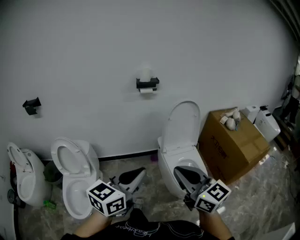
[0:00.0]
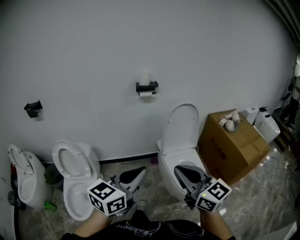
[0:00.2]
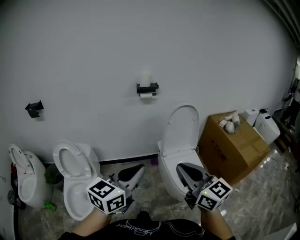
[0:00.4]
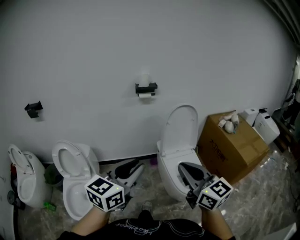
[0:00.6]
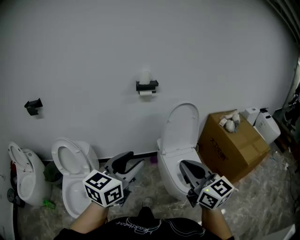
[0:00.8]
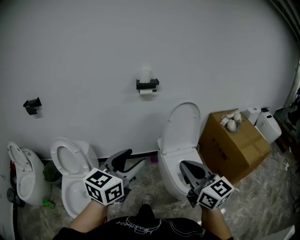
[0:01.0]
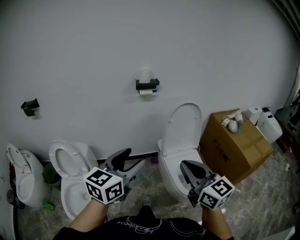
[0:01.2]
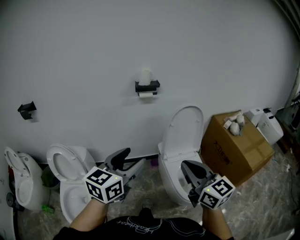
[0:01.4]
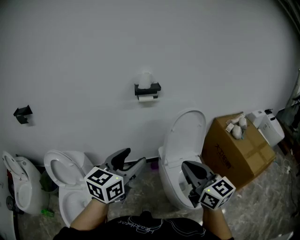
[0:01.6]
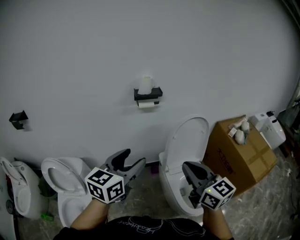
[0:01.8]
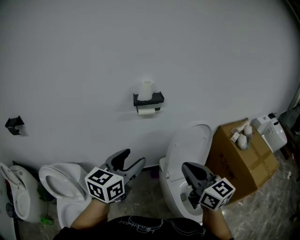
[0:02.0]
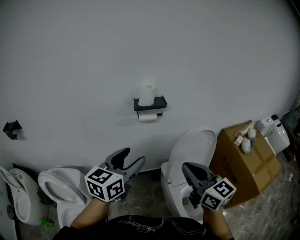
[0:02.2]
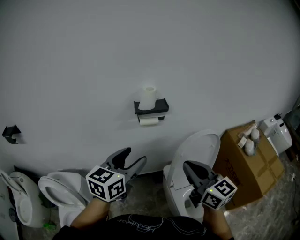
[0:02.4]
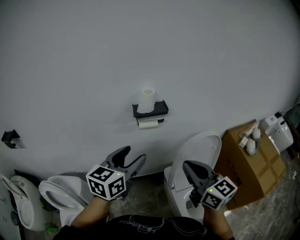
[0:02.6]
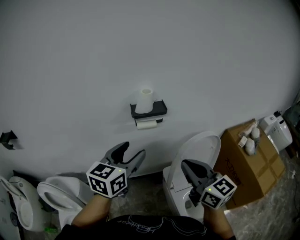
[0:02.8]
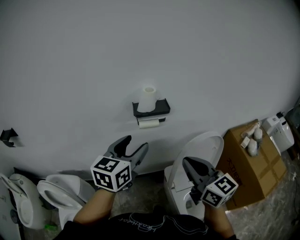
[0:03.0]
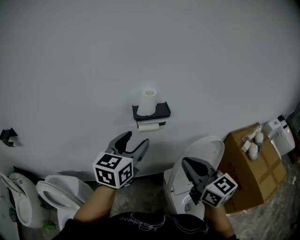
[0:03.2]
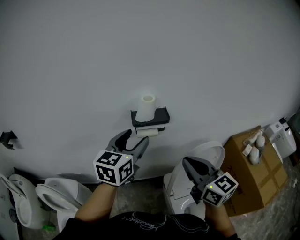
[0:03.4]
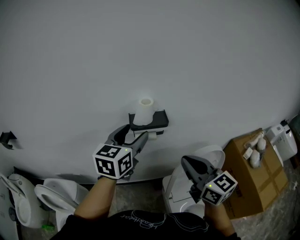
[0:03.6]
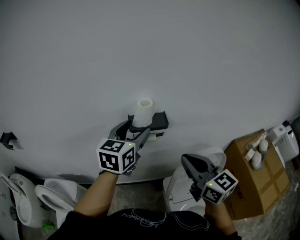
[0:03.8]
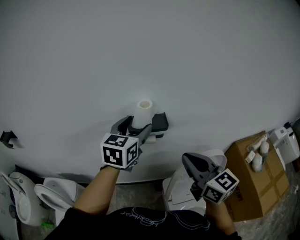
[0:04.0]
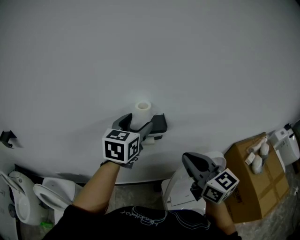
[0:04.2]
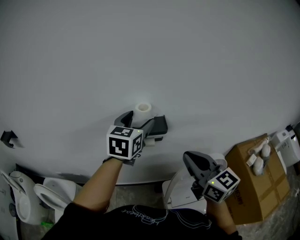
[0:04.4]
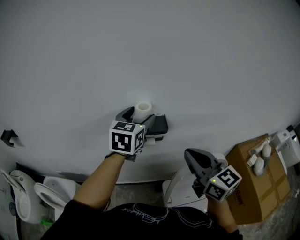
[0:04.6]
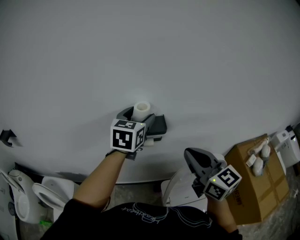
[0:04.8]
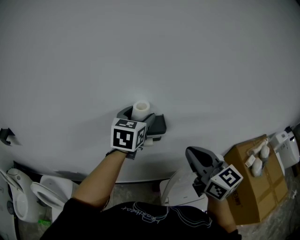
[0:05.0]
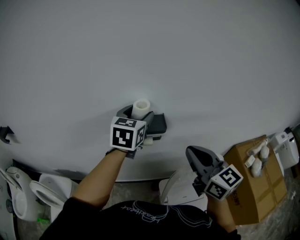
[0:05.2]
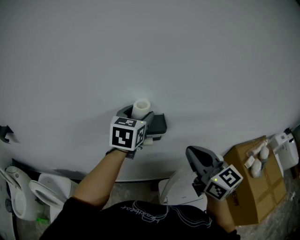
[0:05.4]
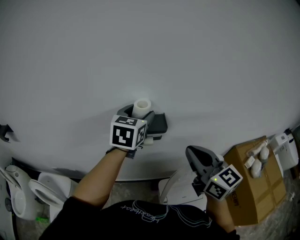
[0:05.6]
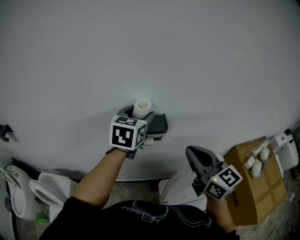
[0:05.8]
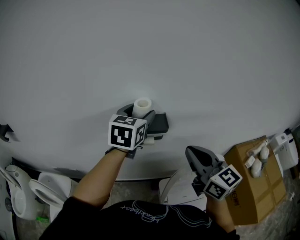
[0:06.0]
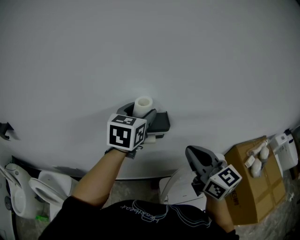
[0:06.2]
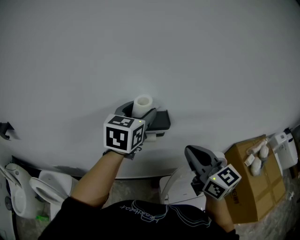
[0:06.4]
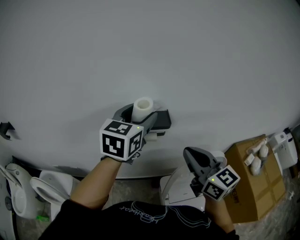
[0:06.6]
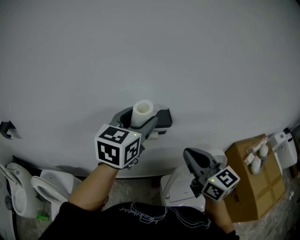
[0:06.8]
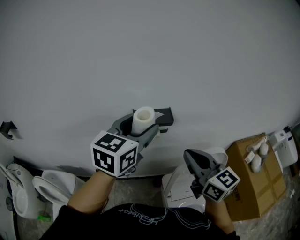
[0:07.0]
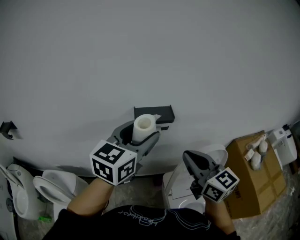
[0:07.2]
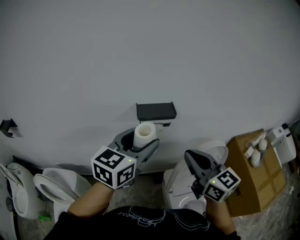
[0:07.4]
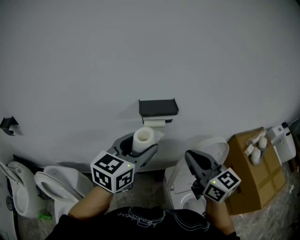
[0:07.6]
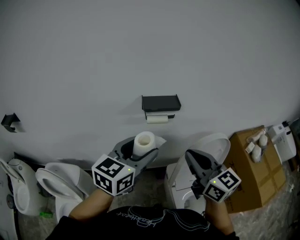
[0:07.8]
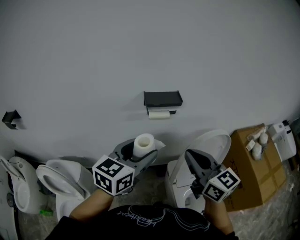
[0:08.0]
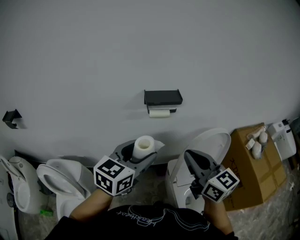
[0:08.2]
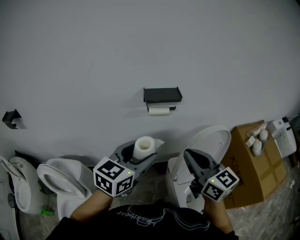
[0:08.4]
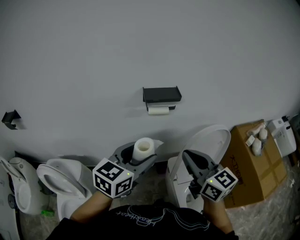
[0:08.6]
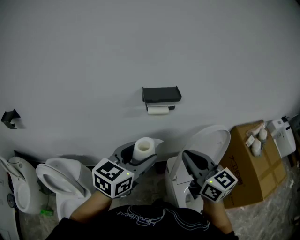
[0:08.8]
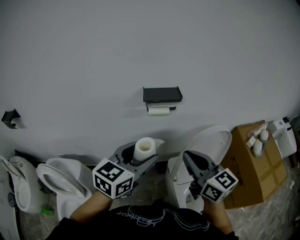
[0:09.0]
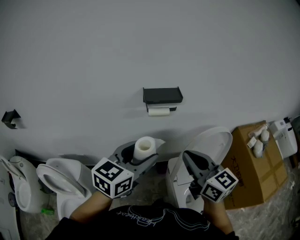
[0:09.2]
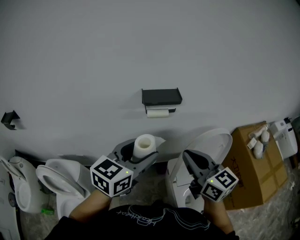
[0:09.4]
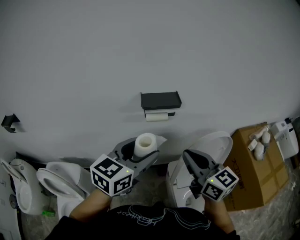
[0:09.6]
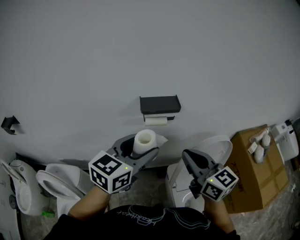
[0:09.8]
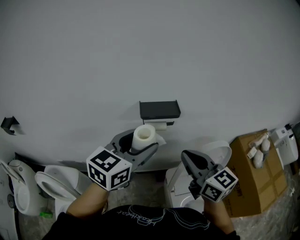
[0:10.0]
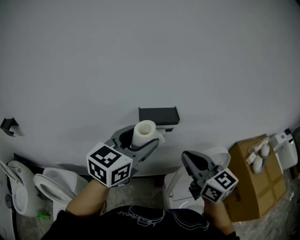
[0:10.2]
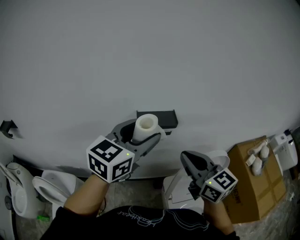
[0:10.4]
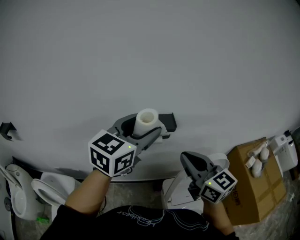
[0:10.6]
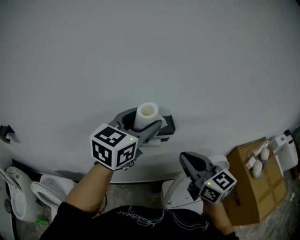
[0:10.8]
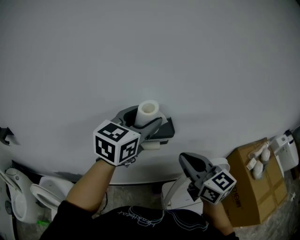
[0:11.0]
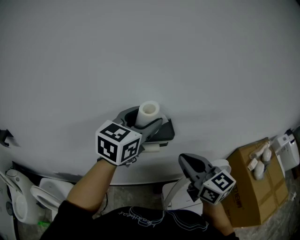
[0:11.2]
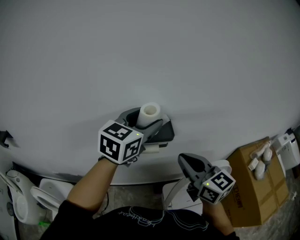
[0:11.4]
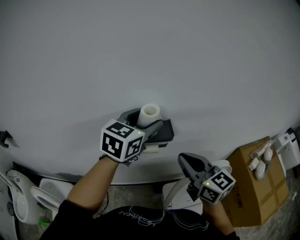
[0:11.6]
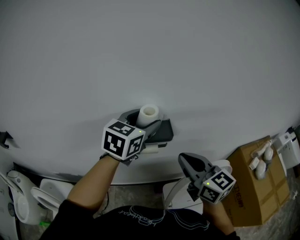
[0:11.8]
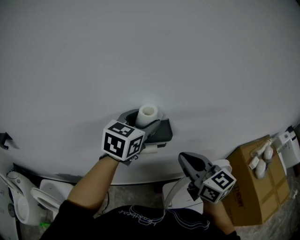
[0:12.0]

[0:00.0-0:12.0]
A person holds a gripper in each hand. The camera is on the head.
0:00.0 to 0:01.6: Both grippers move forward, roughly 20 cm. The left gripper opens its fingers.
0:01.6 to 0:03.0: The two grippers go about 30 cm forward.
0:03.0 to 0:04.4: The left gripper heads forward, covering some 20 cm. The right gripper goes roughly 15 cm forward and to the right.
0:04.4 to 0:06.0: There are only small adjustments of the grippers.
0:06.0 to 0:07.6: The left gripper is displaced backward by roughly 20 cm, while the right gripper is displaced backward and to the left by some 10 cm.
0:07.6 to 0:09.0: The right gripper ends up roughly 5 cm from where it was; the left gripper shifts roughly 10 cm backward and downward.
0:09.0 to 0:10.4: The left gripper travels forward and upward by about 15 cm. The right gripper moves forward, some 10 cm.
0:10.4 to 0:12.0: The right gripper goes some 5 cm forward, while the left gripper goes about 15 cm forward.

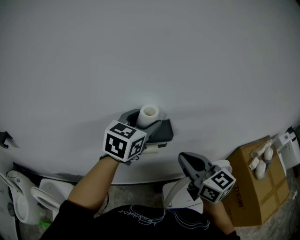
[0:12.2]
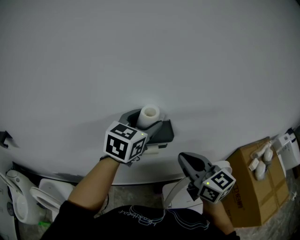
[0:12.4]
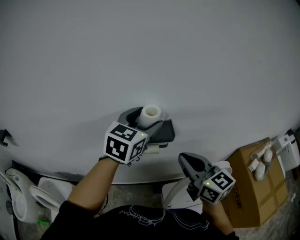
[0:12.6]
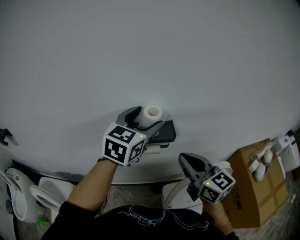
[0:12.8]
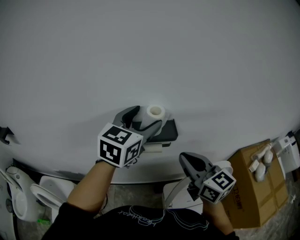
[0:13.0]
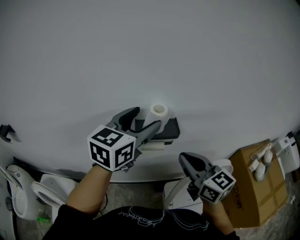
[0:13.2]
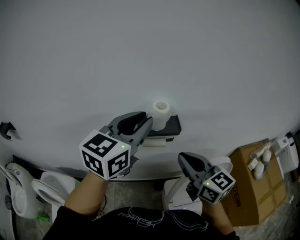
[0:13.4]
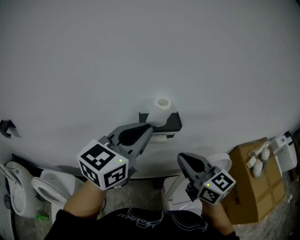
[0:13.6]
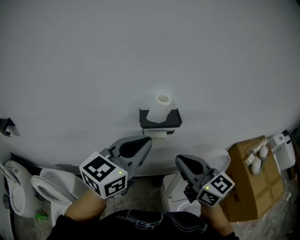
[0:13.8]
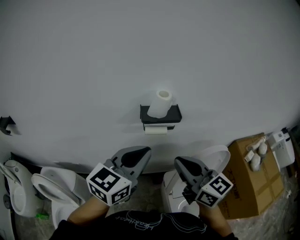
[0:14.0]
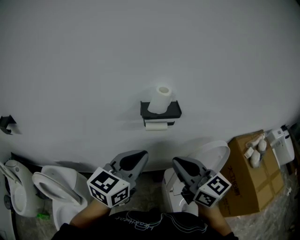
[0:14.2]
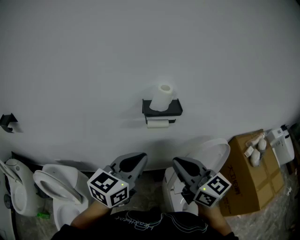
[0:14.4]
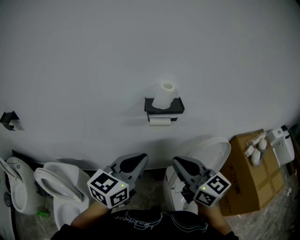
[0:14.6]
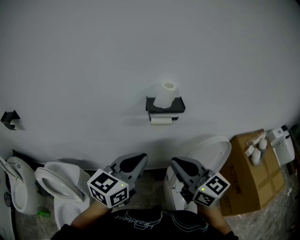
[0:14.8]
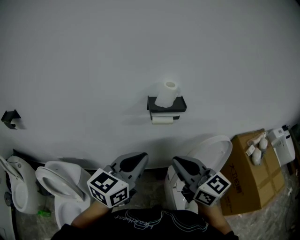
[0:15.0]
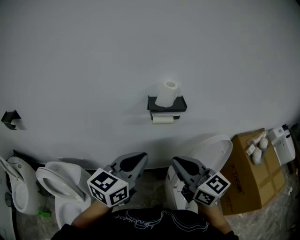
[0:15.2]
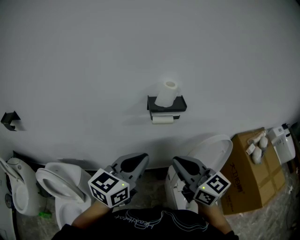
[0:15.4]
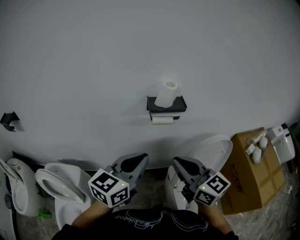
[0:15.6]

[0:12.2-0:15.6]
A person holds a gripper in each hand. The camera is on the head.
0:12.2 to 0:13.8: The left gripper shifts about 20 cm backward, and closes its fingers, while the right gripper travels backward and to the left by about 10 cm.
0:13.8 to 0:15.6: The left gripper goes roughly 10 cm backward and downward; the right gripper travels backward by roughly 5 cm.

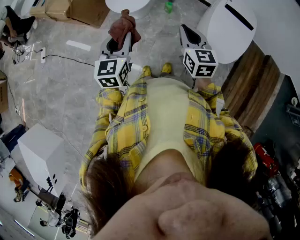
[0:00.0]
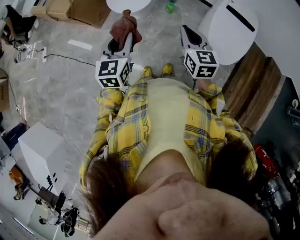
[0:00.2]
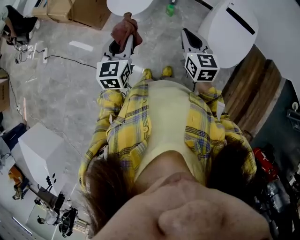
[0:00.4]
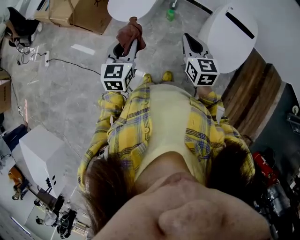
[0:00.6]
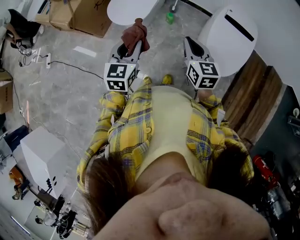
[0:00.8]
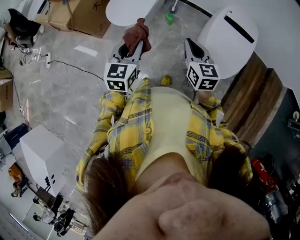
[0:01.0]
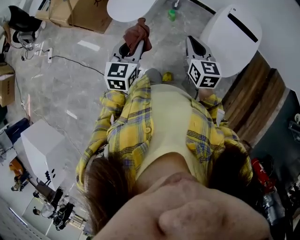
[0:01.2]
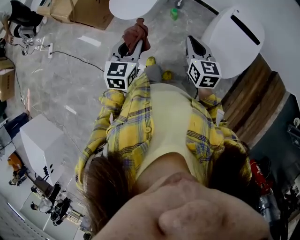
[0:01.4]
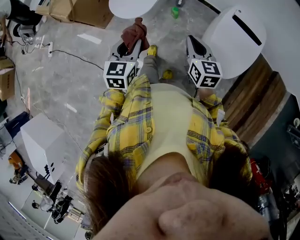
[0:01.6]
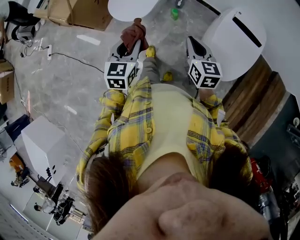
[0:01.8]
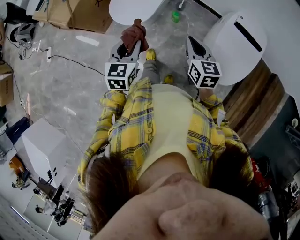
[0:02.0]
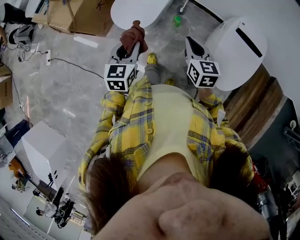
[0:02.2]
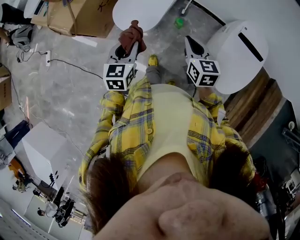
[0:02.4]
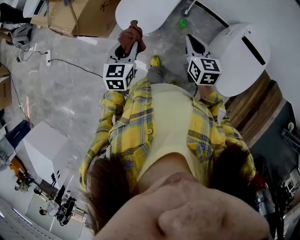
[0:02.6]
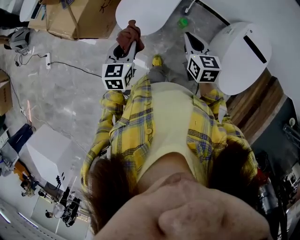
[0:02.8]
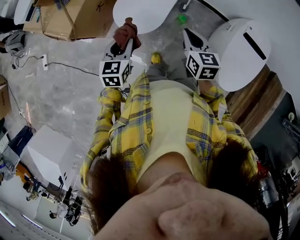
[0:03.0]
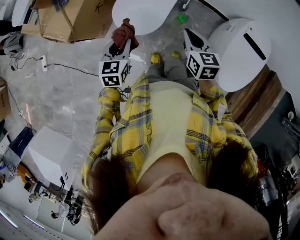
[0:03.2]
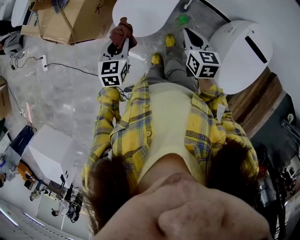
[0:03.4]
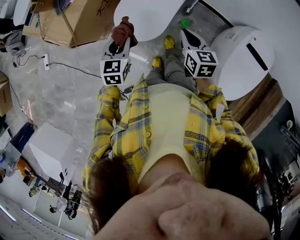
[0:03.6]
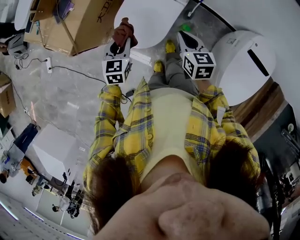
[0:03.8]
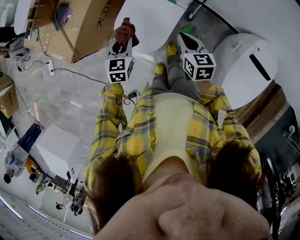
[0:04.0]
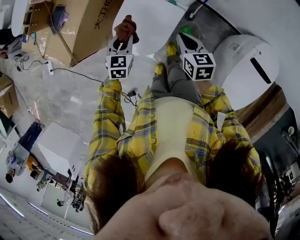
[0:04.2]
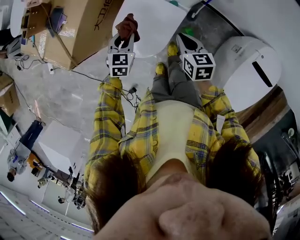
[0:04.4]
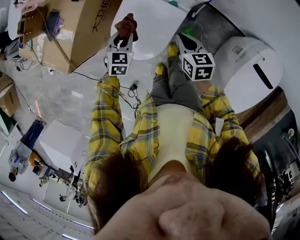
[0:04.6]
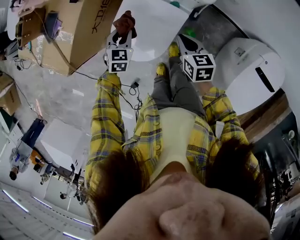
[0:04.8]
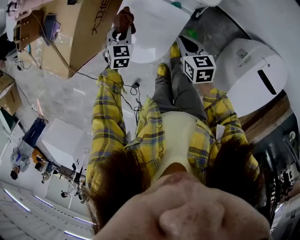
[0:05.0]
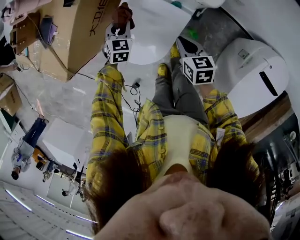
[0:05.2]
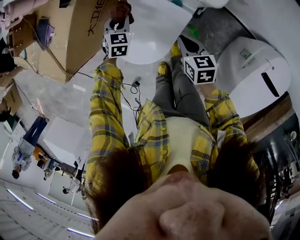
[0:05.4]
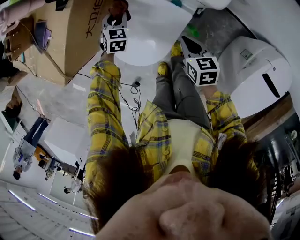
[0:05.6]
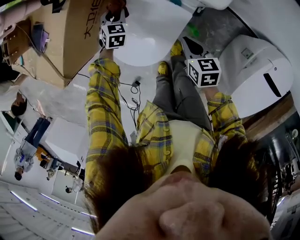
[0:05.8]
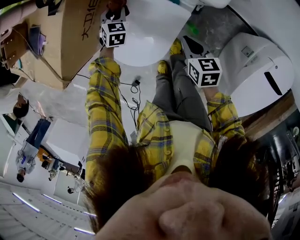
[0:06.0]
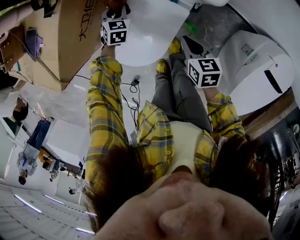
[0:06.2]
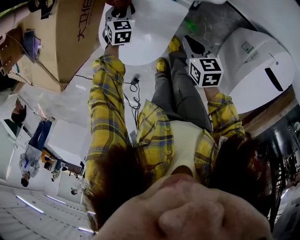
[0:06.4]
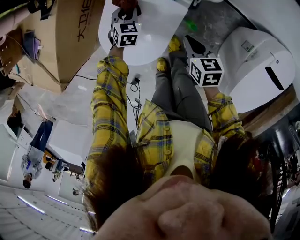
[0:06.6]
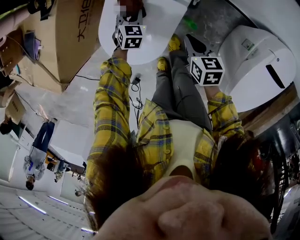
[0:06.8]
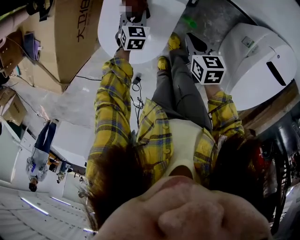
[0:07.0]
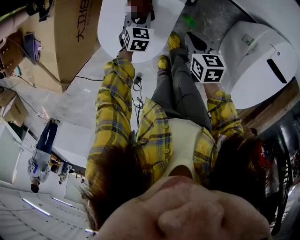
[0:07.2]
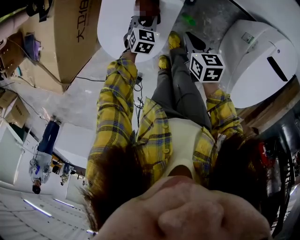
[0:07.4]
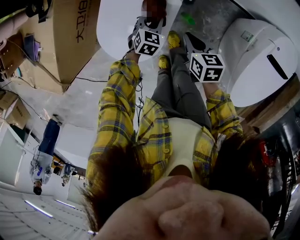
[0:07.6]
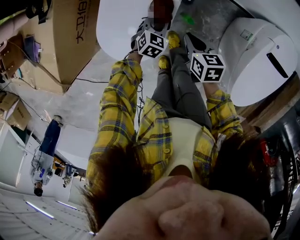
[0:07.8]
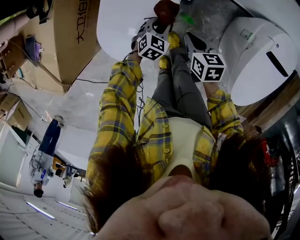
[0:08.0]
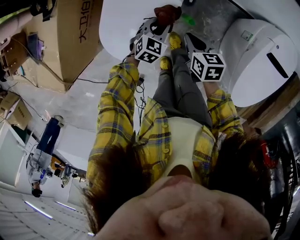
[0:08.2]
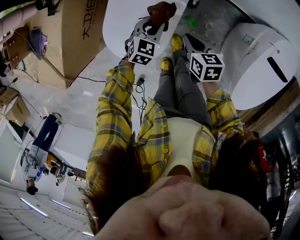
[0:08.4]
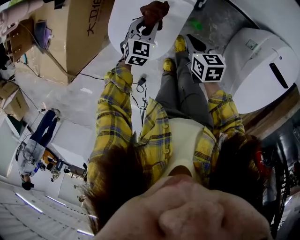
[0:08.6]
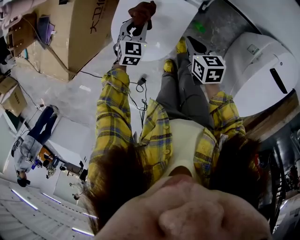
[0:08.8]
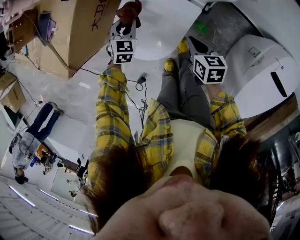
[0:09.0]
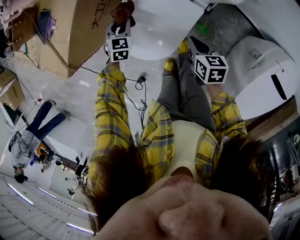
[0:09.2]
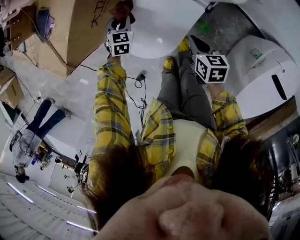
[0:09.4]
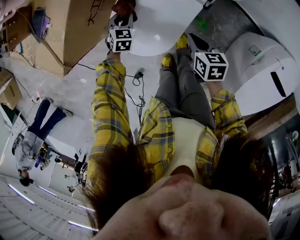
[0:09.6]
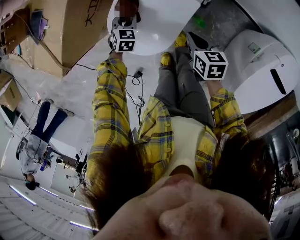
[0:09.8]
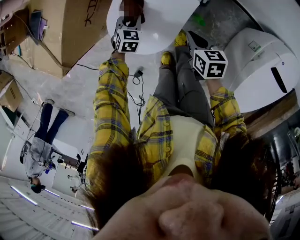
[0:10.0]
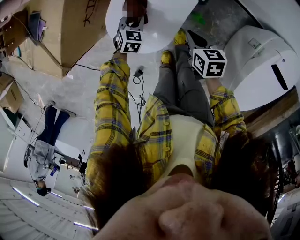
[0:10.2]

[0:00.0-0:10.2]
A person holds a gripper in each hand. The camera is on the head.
0:00.0 to 0:01.4: The two grippers go about 10 cm to the right.
0:01.4 to 0:03.0: The two grippers go roughly 25 cm forward and to the left.
0:03.0 to 0:04.4: The grippers both shift forward and downward by roughly 25 cm.
0:04.4 to 0:05.8: The right gripper goes about 10 cm downward. The left gripper shifts about 20 cm forward and downward.
0:05.8 to 0:07.2: The left gripper heads to the right and backward, covering some 15 cm.
0:07.2 to 0:08.8: The left gripper moves upward and to the left, roughly 10 cm.
0:08.8 to 0:10.2: The left gripper travels downward by some 10 cm, and goes to the left and returns, some 10 cm each way.
